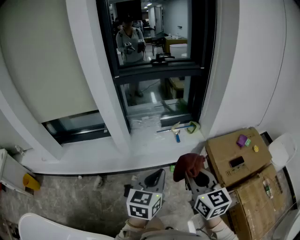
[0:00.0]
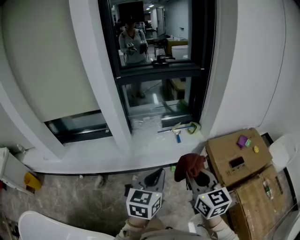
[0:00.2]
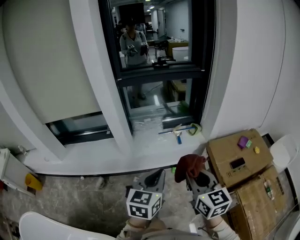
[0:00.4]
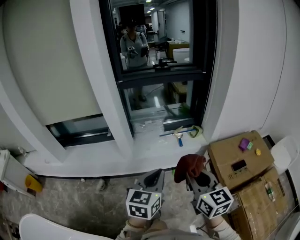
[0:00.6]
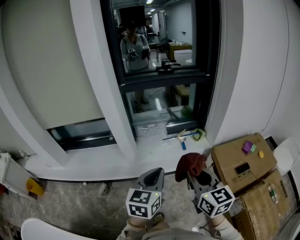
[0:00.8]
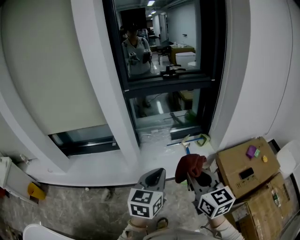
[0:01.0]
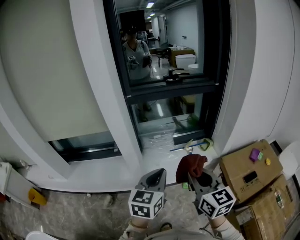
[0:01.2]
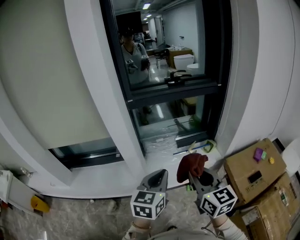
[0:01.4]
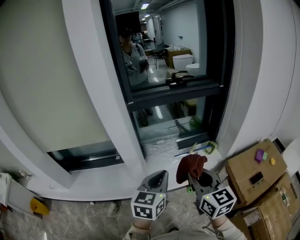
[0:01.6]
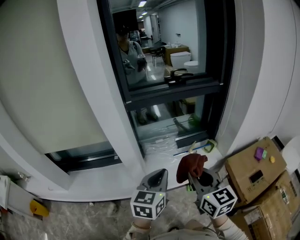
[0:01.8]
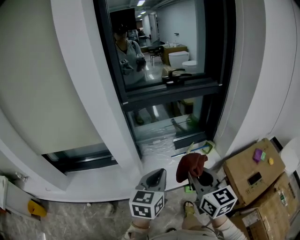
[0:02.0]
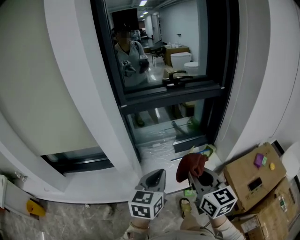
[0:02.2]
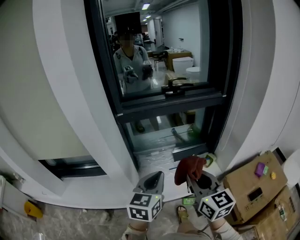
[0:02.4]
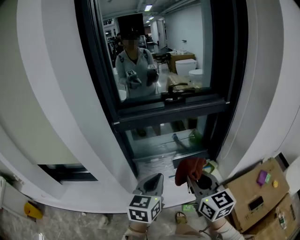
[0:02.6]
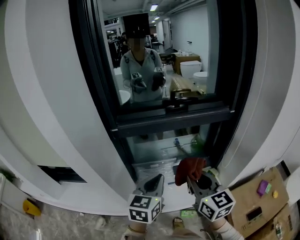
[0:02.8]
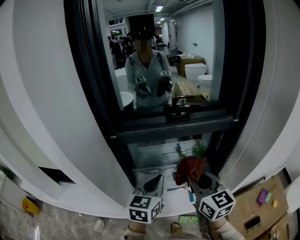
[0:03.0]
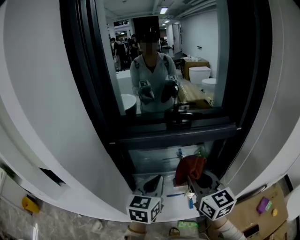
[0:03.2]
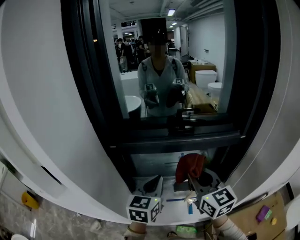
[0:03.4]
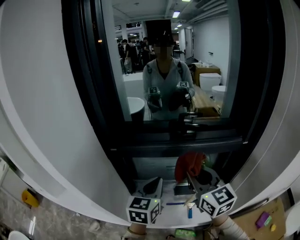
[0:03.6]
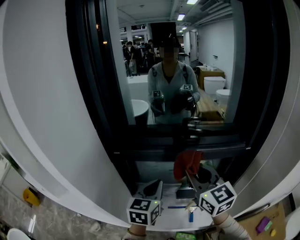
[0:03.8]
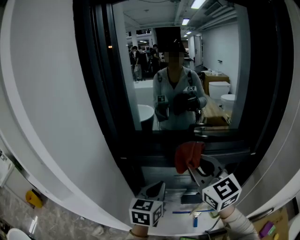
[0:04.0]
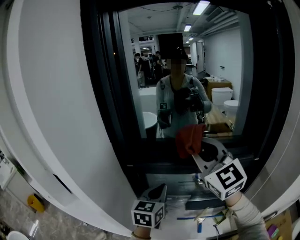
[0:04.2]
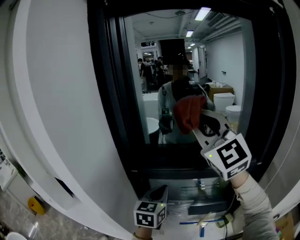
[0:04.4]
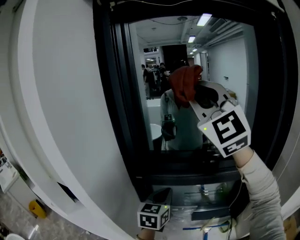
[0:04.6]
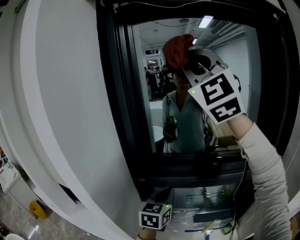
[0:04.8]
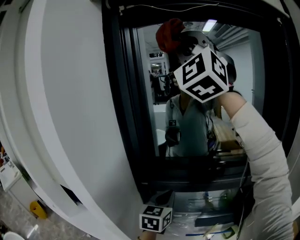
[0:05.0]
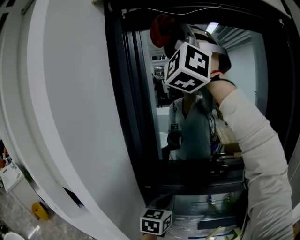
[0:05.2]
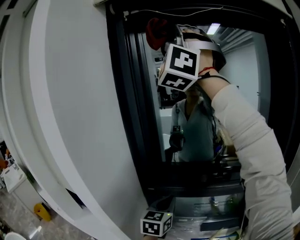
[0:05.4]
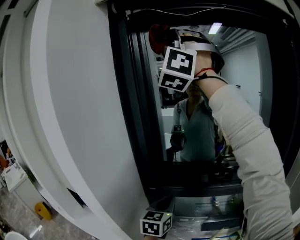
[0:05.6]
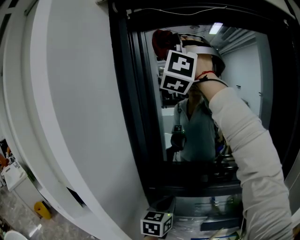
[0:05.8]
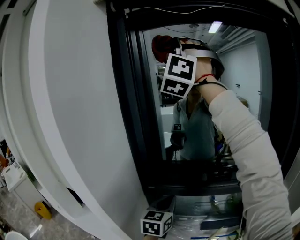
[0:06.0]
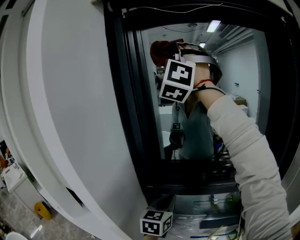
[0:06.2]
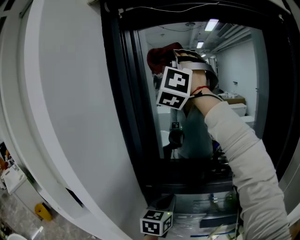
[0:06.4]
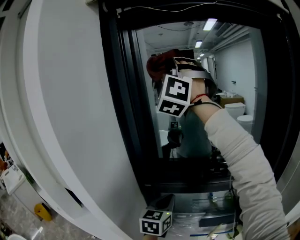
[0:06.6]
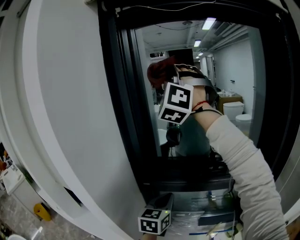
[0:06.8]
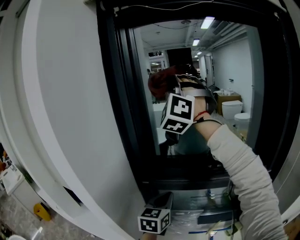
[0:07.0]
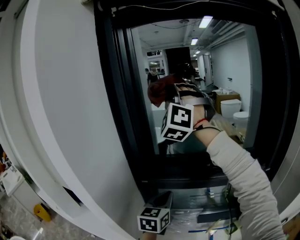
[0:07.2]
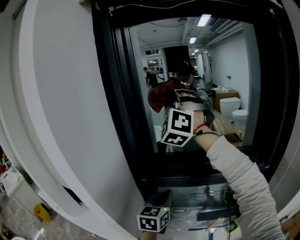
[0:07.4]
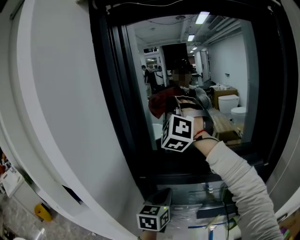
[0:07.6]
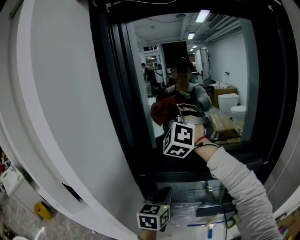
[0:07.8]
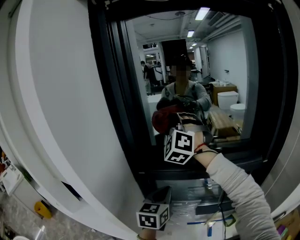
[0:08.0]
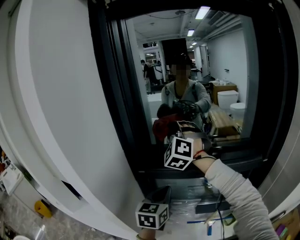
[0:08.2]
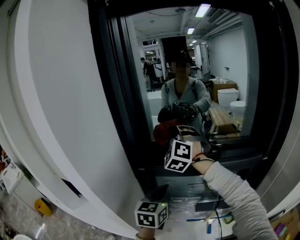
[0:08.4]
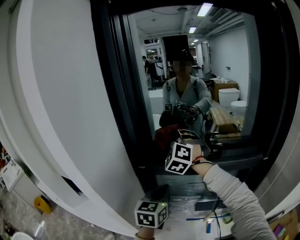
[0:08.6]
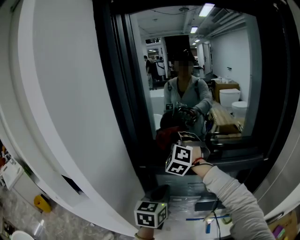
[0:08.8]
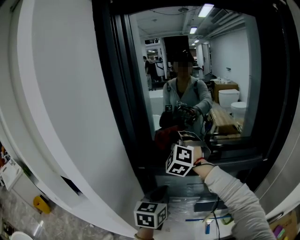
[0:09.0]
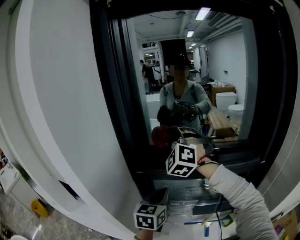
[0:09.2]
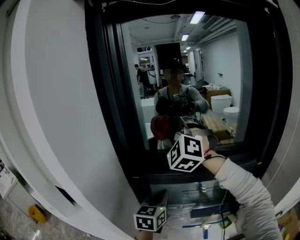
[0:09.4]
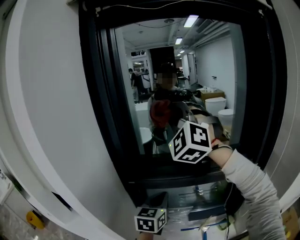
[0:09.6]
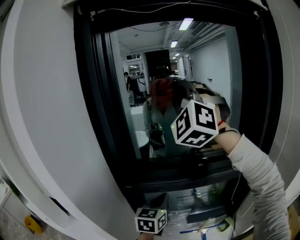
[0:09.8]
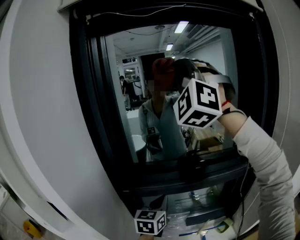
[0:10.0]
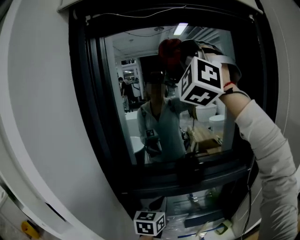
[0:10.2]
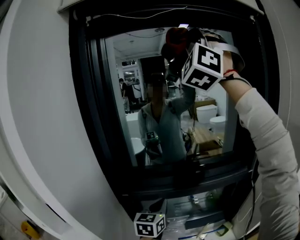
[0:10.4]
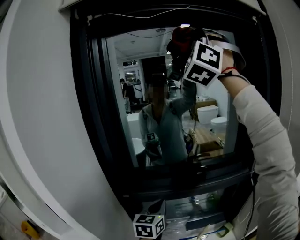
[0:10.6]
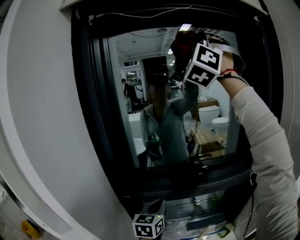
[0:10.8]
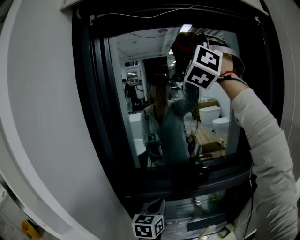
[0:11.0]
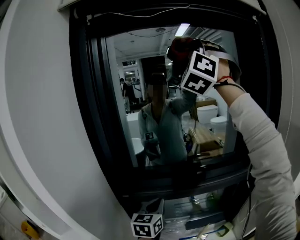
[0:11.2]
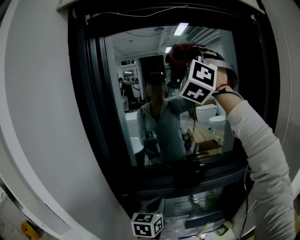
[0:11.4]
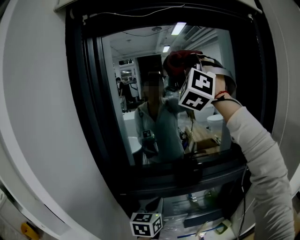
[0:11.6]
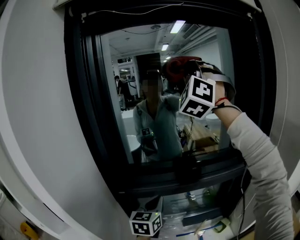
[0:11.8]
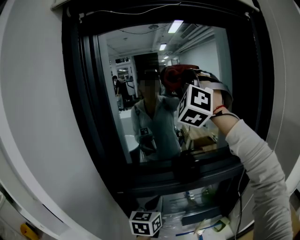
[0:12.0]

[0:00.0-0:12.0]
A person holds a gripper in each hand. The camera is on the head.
0.0 to 1.6 s: The two grippers go some 20 cm forward and to the left.
1.6 to 3.0 s: The grippers both shift forward by approximately 30 cm.
3.0 to 4.4 s: The right gripper travels upward and forward by some 35 cm, and rolls counterclockwise, seen from behind, by roughly 40 degrees. The left gripper is displaced forward and upward by approximately 15 cm.
4.4 to 6.0 s: The left gripper moves approximately 5 cm; the right gripper moves upward, forward and to the left, roughly 30 cm, and twists approximately 60 degrees counterclockwise, seen from behind.
6.0 to 7.6 s: The right gripper heads downward, covering some 25 cm, and swivels roughly 30 degrees.
7.6 to 9.0 s: The right gripper is displaced downward by approximately 20 cm, and swivels about 20 degrees.
9.0 to 10.4 s: The left gripper heads forward, covering about 5 cm. Meanwhile the right gripper heads upward and to the right, covering roughly 50 cm, and tilts its fingers approximately 40 degrees upward.
10.4 to 12.0 s: The right gripper moves downward, some 15 cm.

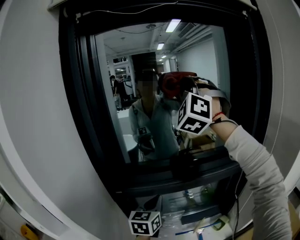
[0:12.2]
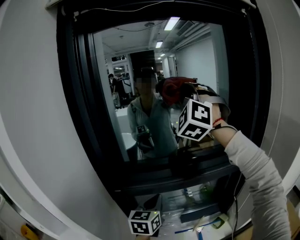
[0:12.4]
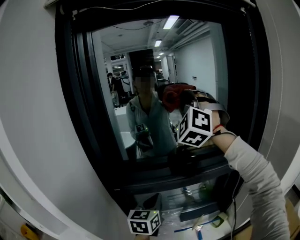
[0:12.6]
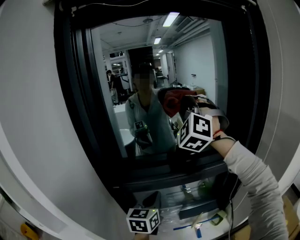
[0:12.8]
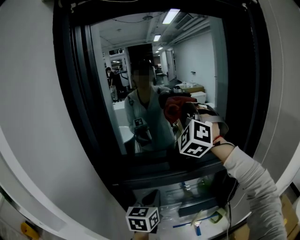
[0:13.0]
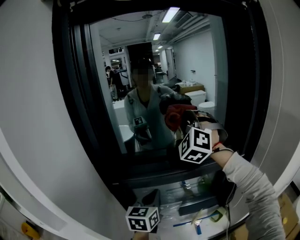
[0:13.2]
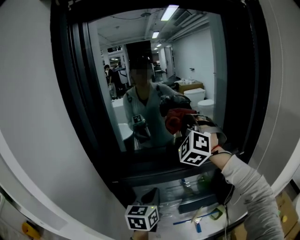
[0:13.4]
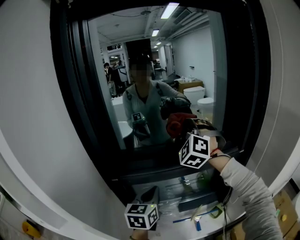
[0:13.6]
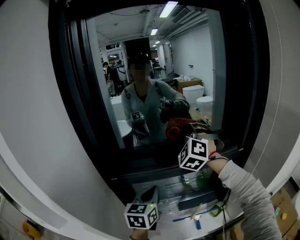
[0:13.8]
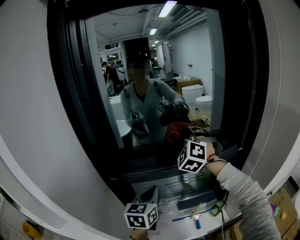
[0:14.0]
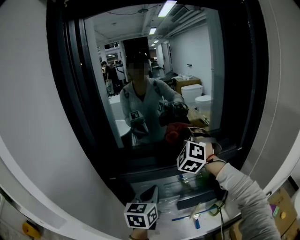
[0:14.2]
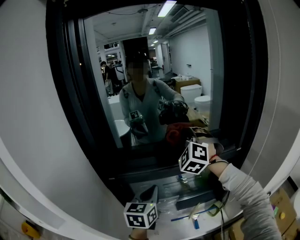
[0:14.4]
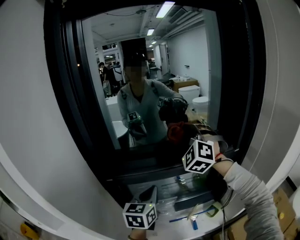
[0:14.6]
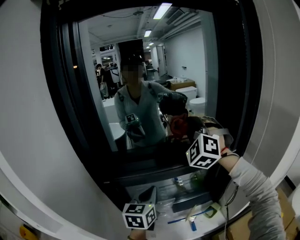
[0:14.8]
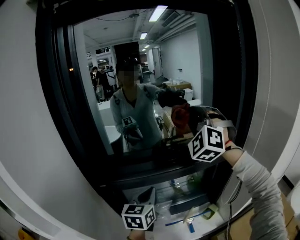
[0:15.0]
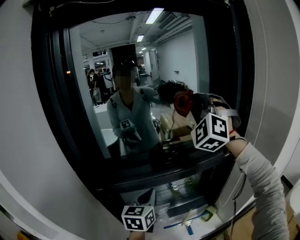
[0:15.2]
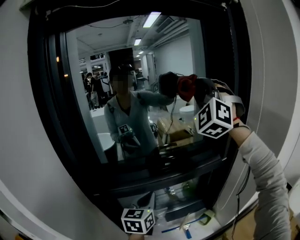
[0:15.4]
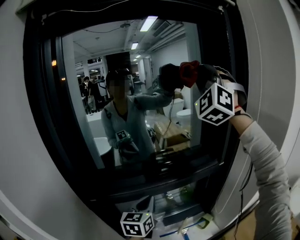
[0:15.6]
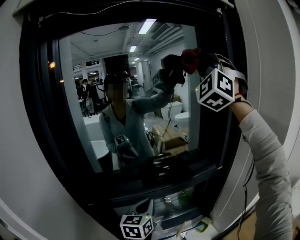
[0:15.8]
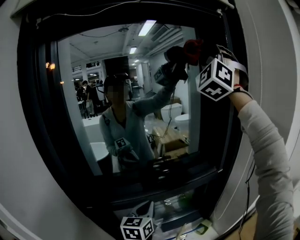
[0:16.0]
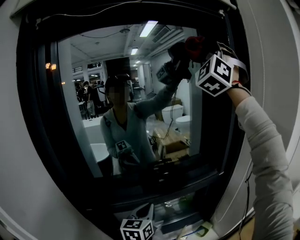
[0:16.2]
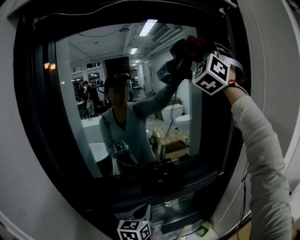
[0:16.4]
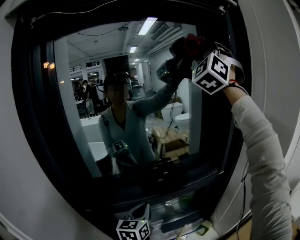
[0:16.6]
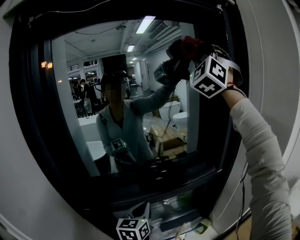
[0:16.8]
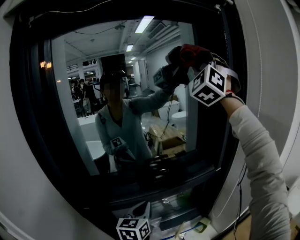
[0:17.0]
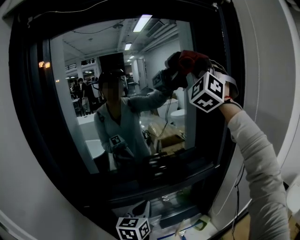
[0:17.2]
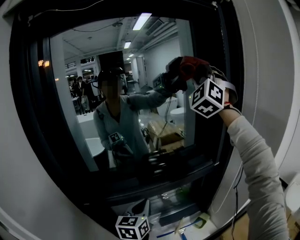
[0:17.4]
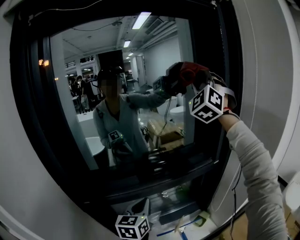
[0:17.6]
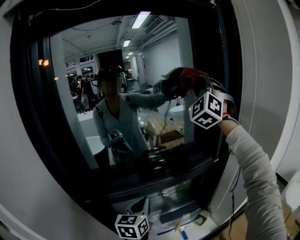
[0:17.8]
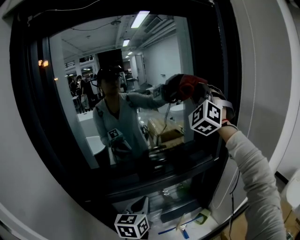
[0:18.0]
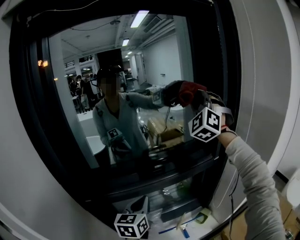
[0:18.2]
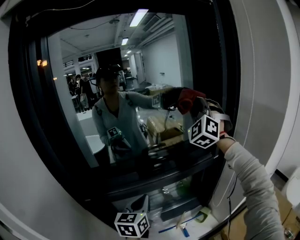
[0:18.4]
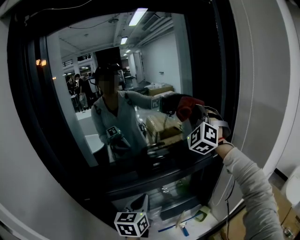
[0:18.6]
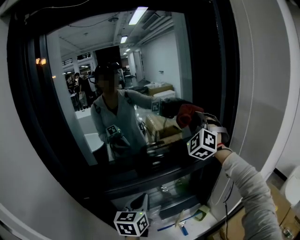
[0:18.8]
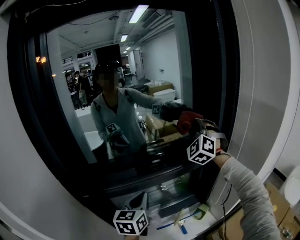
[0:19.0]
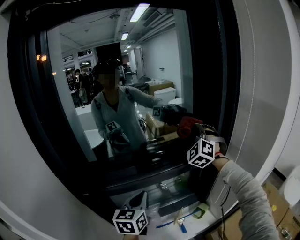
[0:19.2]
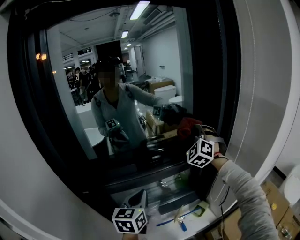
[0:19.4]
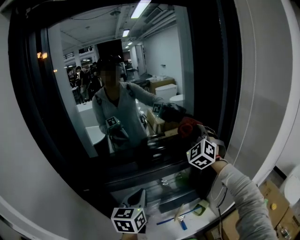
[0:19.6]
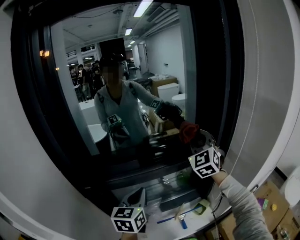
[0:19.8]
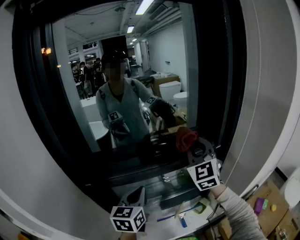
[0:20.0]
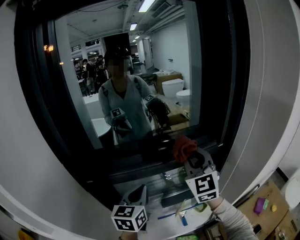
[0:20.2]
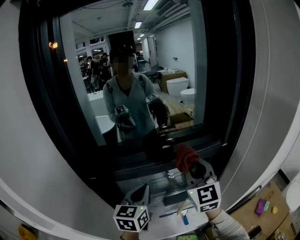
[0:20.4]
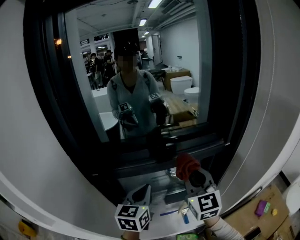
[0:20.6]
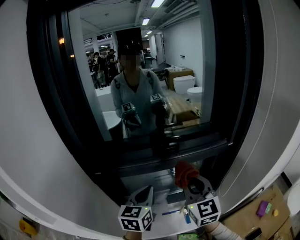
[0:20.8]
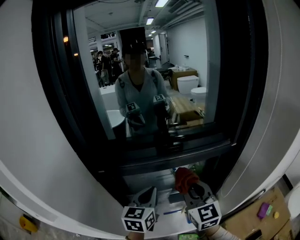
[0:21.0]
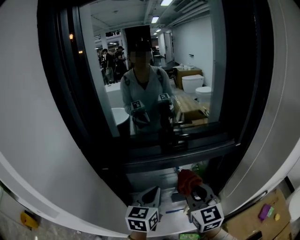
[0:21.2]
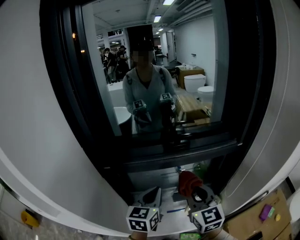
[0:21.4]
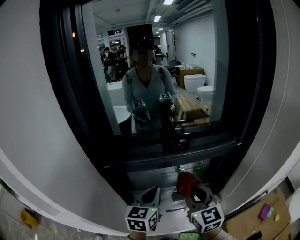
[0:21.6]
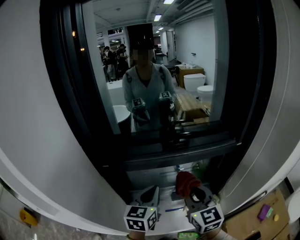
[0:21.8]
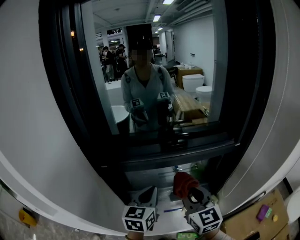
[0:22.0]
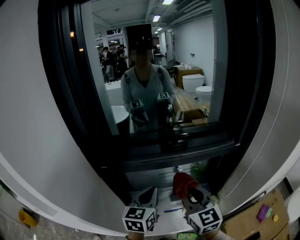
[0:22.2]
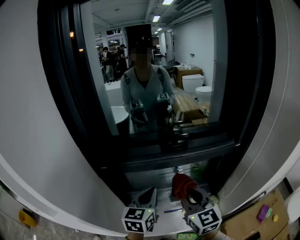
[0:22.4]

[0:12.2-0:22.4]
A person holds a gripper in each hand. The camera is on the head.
12.2 to 13.6 s: The right gripper goes roughly 20 cm downward, and swivels approximately 20 degrees.
13.6 to 15.2 s: The left gripper travels to the right by some 5 cm. The right gripper shifts about 15 cm upward and to the right.
15.2 to 16.6 s: The left gripper is displaced forward by some 5 cm, while the right gripper goes approximately 25 cm upward, and changes its angle by some 30 degrees.
16.6 to 18.0 s: The right gripper is displaced downward by some 20 cm.
18.0 to 19.4 s: The right gripper heads downward, covering approximately 25 cm, and changes its angle by about 20 degrees.
19.4 to 21.0 s: The right gripper is displaced backward, to the left and downward by some 30 cm, and rolls clockwise, seen from behind, by some 60 degrees, while the left gripper goes some 5 cm backward.
21.0 to 22.4 s: The grippers move only a little.

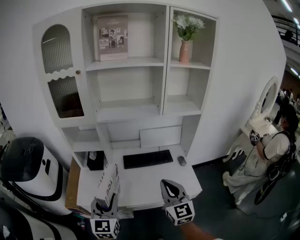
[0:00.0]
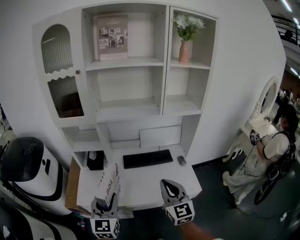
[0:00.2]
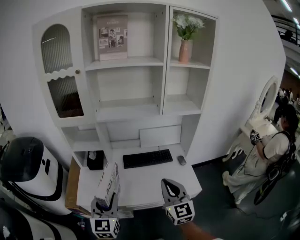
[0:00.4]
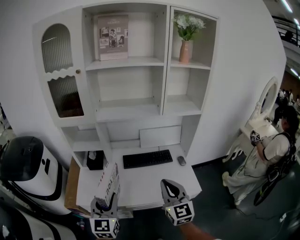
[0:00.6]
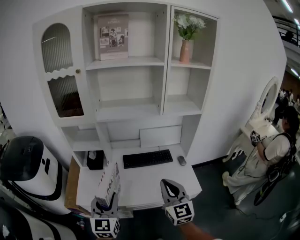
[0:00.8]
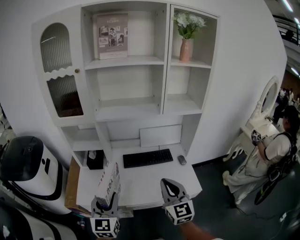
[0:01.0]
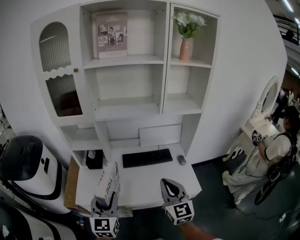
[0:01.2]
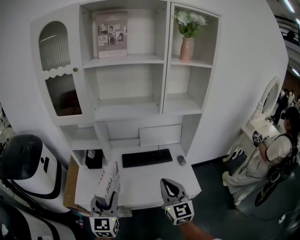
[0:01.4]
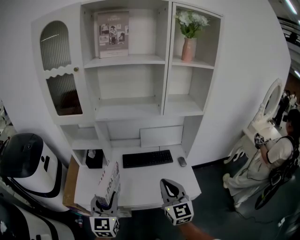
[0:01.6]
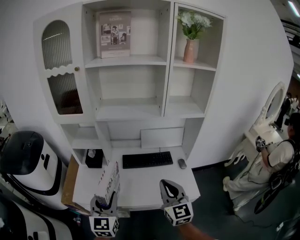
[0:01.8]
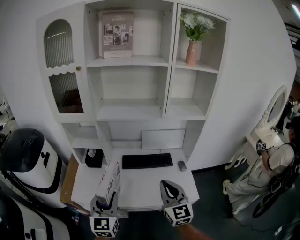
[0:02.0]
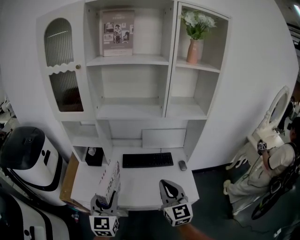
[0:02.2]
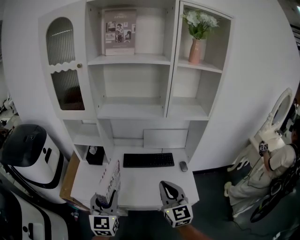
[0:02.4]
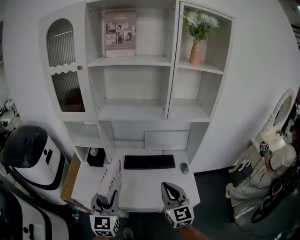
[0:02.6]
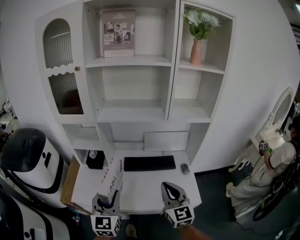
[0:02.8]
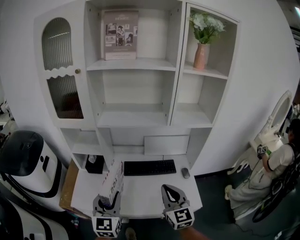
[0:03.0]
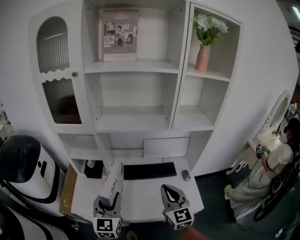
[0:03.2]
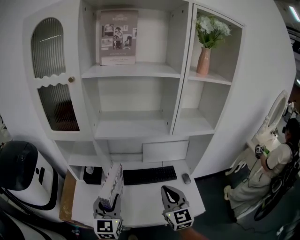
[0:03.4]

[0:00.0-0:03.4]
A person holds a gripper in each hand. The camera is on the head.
0.0 to 1.6 s: The grippers move only a little.
1.6 to 3.4 s: The grippers both shift forward by some 10 cm.
